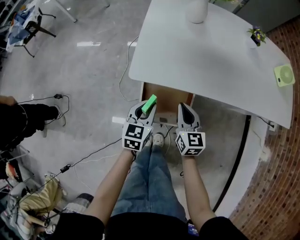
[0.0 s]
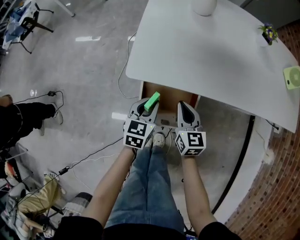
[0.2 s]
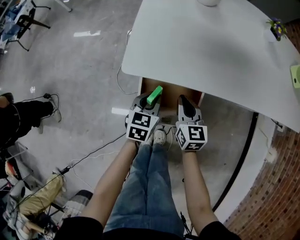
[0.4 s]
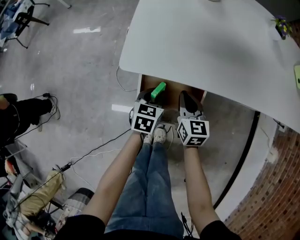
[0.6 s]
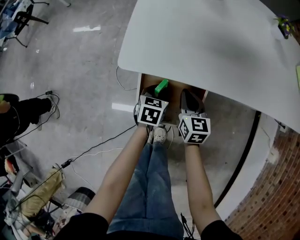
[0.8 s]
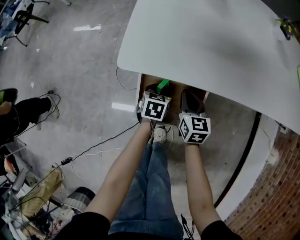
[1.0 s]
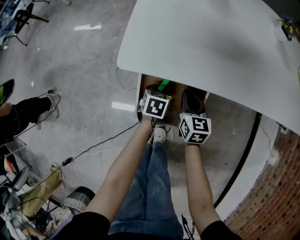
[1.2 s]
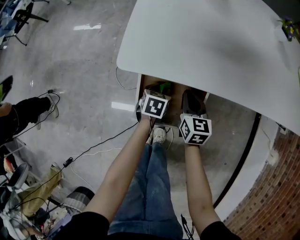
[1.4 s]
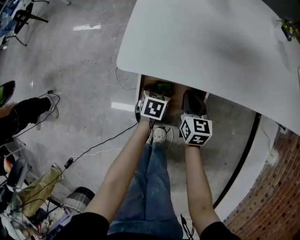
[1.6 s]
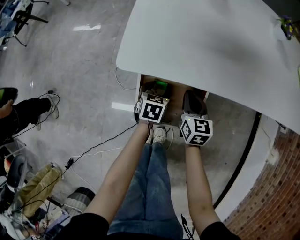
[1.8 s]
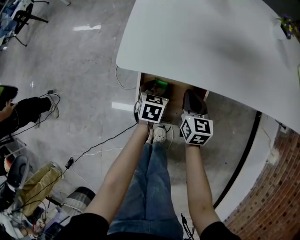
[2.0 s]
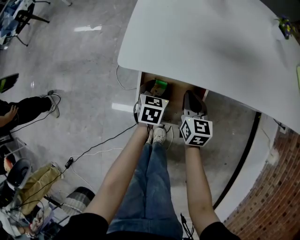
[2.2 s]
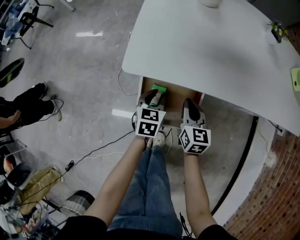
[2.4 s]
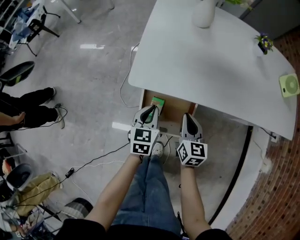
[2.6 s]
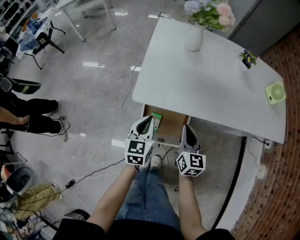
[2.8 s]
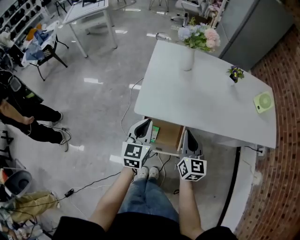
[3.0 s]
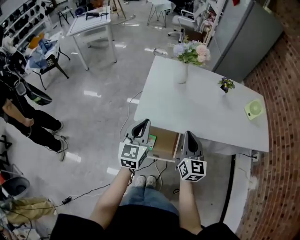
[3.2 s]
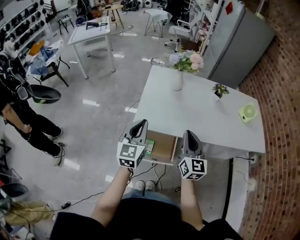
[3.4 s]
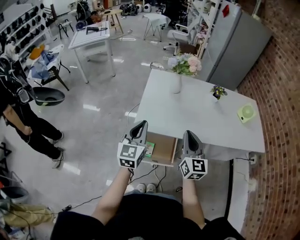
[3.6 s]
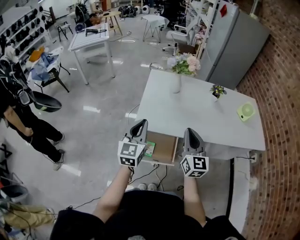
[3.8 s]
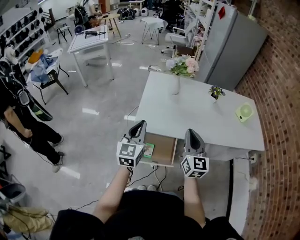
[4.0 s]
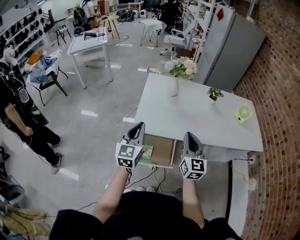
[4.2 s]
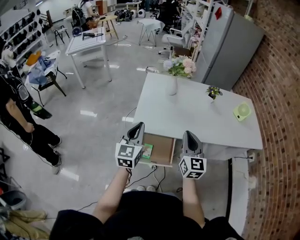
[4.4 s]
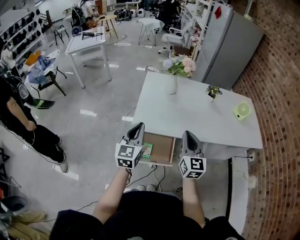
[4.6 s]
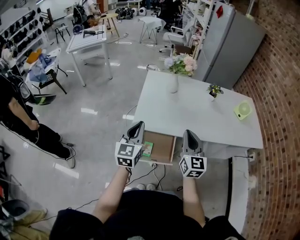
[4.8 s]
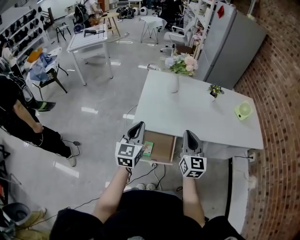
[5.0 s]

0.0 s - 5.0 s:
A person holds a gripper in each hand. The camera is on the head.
0.0 s - 1.6 s: The two grippers go about 20 cm downward. The left gripper rotates roughly 30 degrees, and opens its fingers.
1.6 s - 3.4 s: Both grippers travel together upward, about 50 cm. The left gripper angles its fingers upward, by about 50 degrees, and closes up, while the right gripper points its fingers roughly 30 degrees further upward.
3.4 s - 5.0 s: The grippers move only a little.

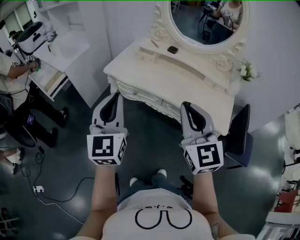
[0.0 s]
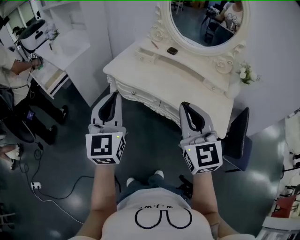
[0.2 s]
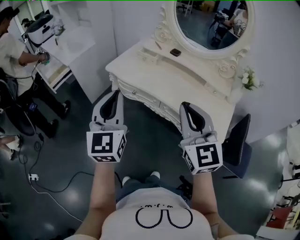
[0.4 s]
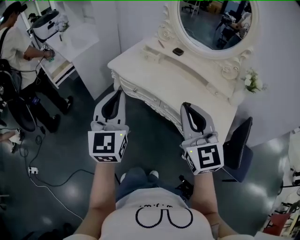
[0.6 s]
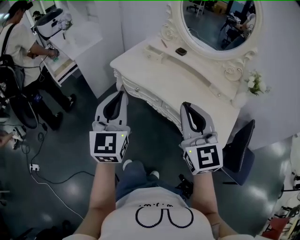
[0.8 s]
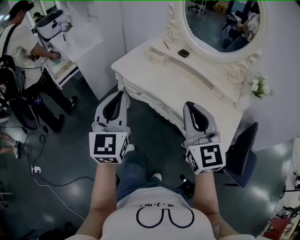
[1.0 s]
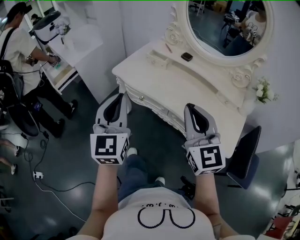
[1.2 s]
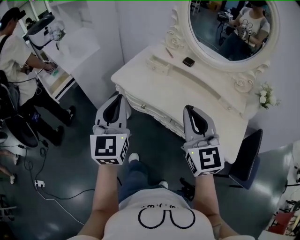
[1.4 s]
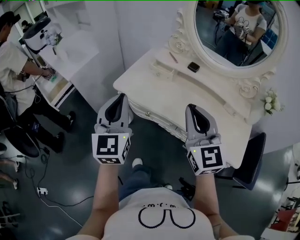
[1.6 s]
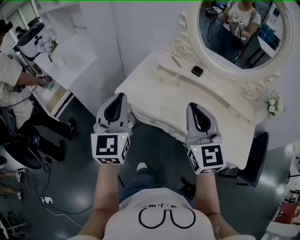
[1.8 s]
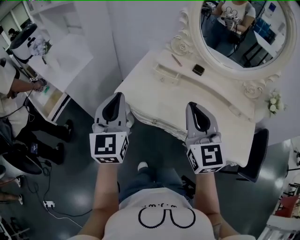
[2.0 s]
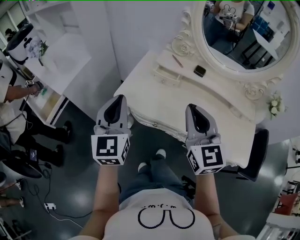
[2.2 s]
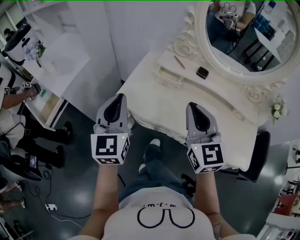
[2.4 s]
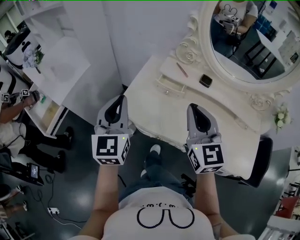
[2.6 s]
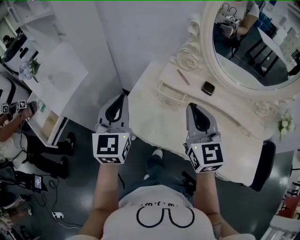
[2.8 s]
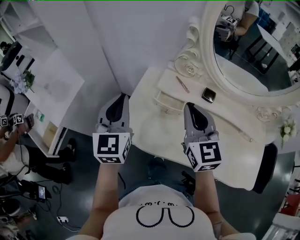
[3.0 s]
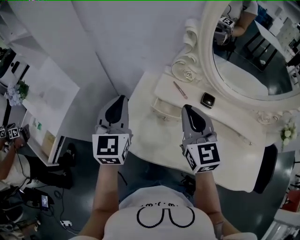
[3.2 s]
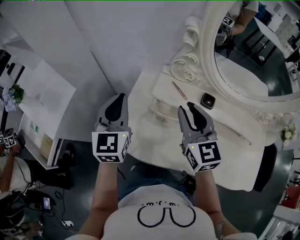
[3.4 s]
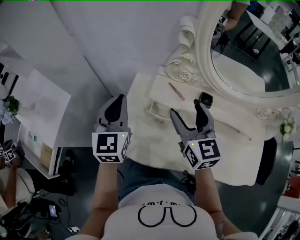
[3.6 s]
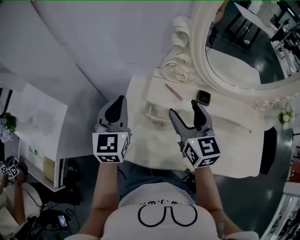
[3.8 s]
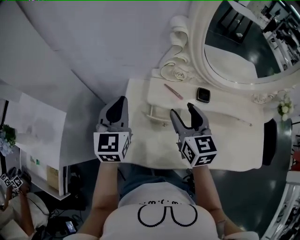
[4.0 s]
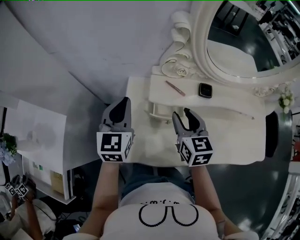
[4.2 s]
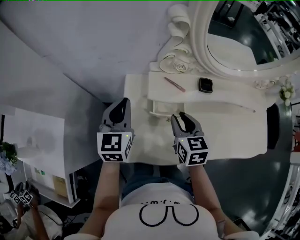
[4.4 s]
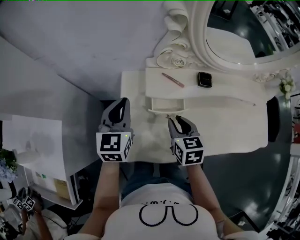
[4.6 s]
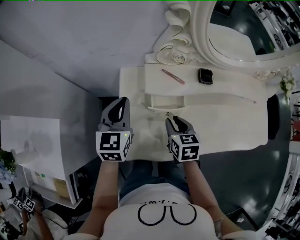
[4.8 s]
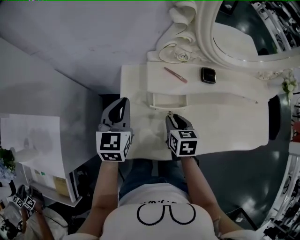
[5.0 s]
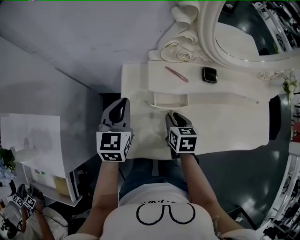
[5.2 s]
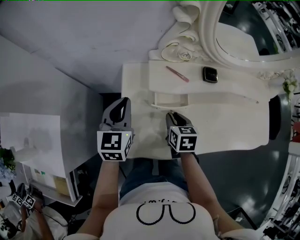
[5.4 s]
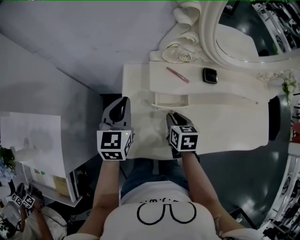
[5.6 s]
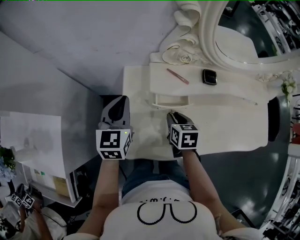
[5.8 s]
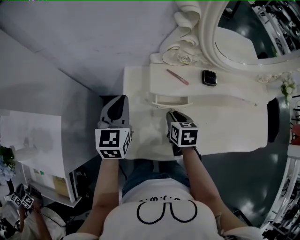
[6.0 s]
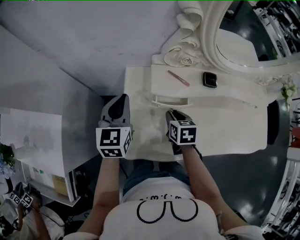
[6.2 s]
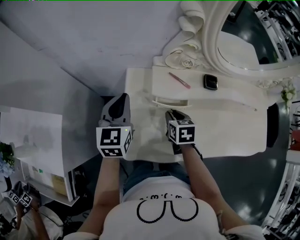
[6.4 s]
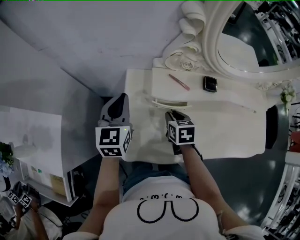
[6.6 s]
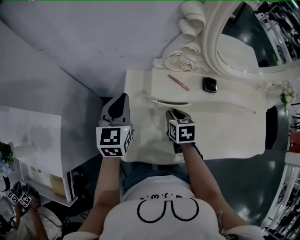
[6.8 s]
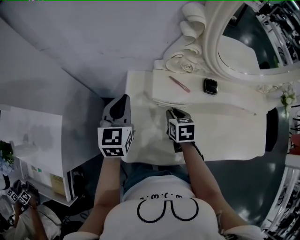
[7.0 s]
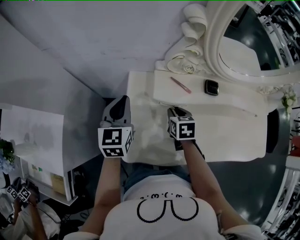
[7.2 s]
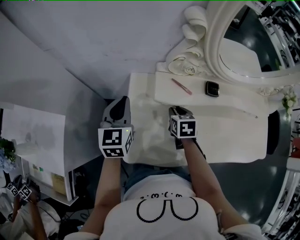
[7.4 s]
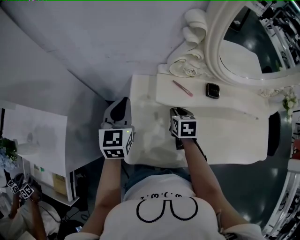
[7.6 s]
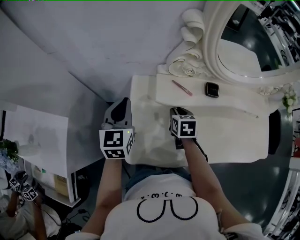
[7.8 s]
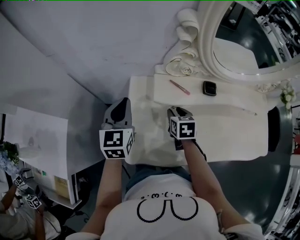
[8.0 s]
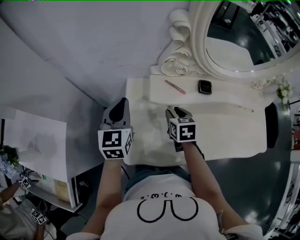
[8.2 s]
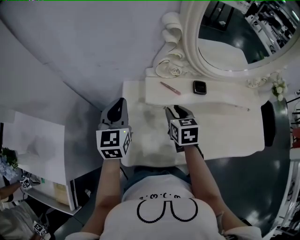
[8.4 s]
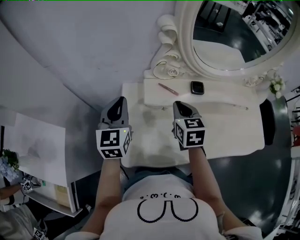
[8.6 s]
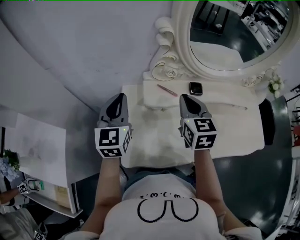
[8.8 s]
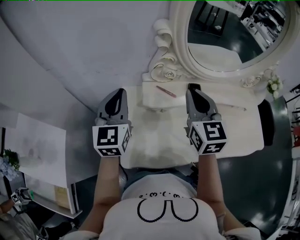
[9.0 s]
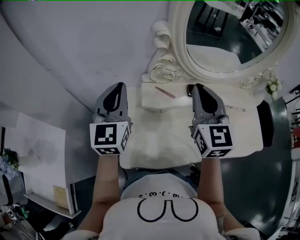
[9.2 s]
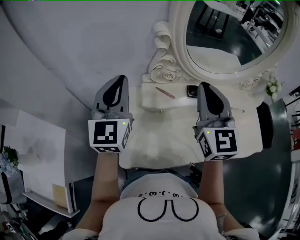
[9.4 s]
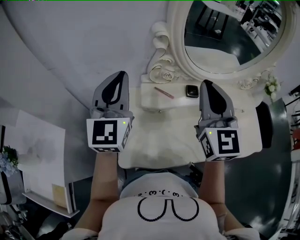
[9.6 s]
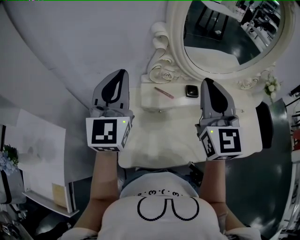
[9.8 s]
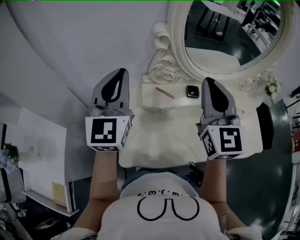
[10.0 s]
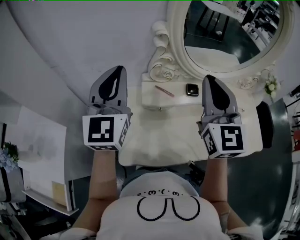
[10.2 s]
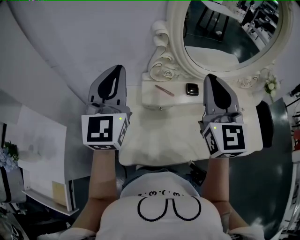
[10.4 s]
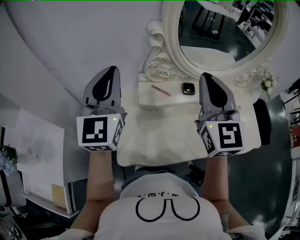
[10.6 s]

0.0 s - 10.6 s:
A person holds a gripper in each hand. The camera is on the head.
0.0 s - 1.6 s: The two grippers go roughly 20 cm forward.
1.6 s - 3.0 s: The grippers both shift forward by about 35 cm.
3.0 s - 4.6 s: The left gripper travels forward and downward by about 20 cm, and changes its angle by approximately 30 degrees, while the right gripper shifts approximately 20 cm downward, points its fingers about 30 degrees further downward, and opens and closes again.
4.6 s - 6.0 s: The right gripper is displaced downward by some 5 cm.
6.0 s - 7.6 s: The right gripper is displaced forward by approximately 5 cm.
7.6 s - 9.0 s: The right gripper travels upward by roughly 30 cm, and angles its fingers upward, by roughly 40 degrees. Meanwhile the left gripper heads upward, covering approximately 10 cm.
9.0 s - 10.6 s: Both grippers travel together upward, some 10 cm.

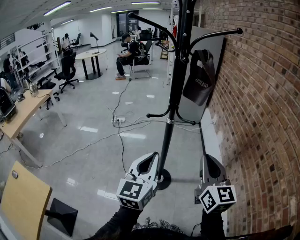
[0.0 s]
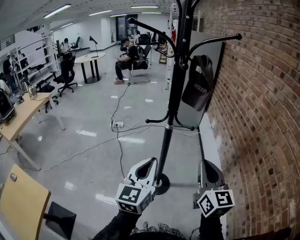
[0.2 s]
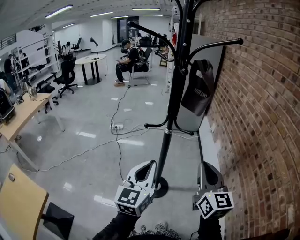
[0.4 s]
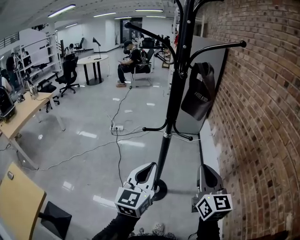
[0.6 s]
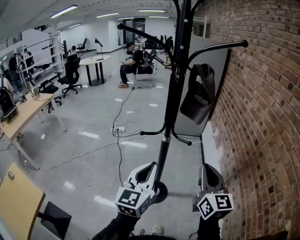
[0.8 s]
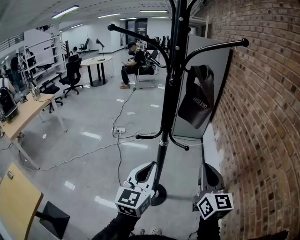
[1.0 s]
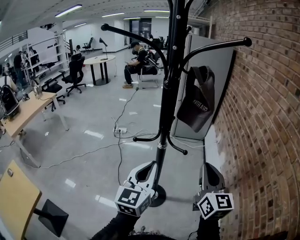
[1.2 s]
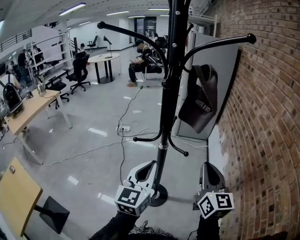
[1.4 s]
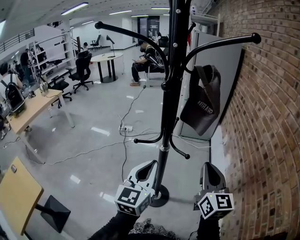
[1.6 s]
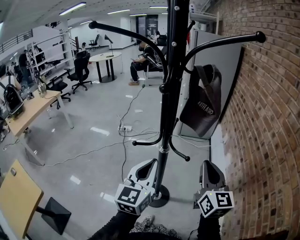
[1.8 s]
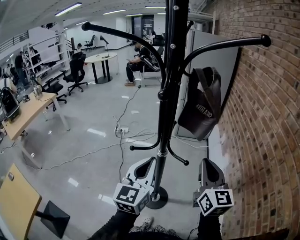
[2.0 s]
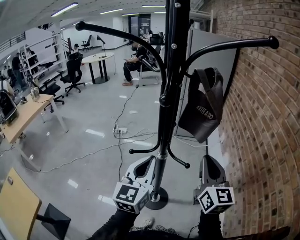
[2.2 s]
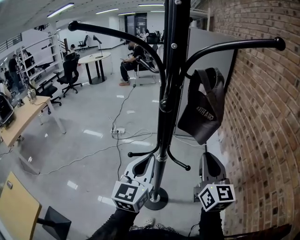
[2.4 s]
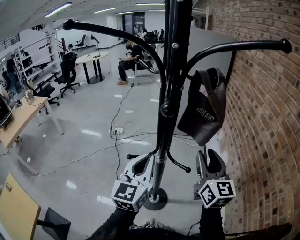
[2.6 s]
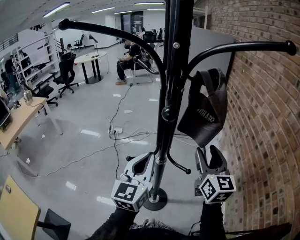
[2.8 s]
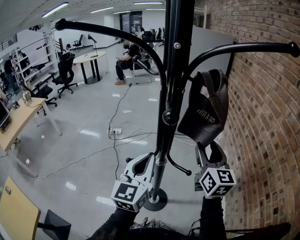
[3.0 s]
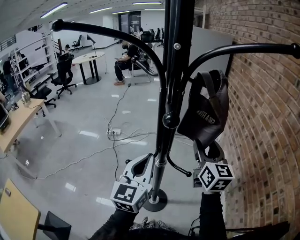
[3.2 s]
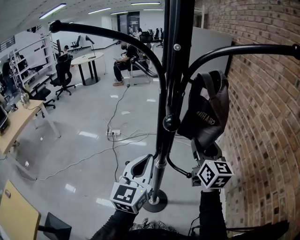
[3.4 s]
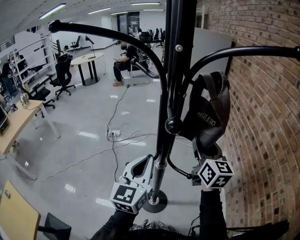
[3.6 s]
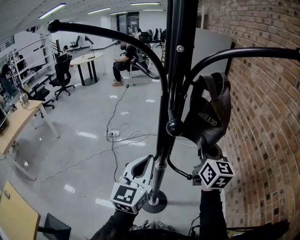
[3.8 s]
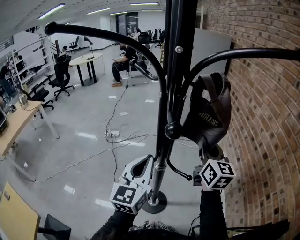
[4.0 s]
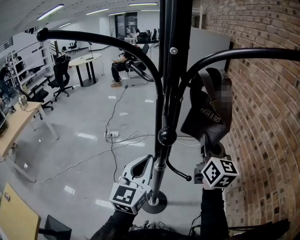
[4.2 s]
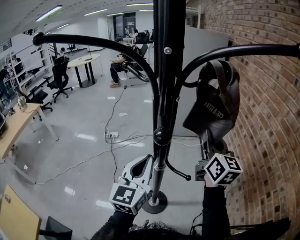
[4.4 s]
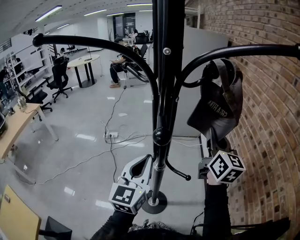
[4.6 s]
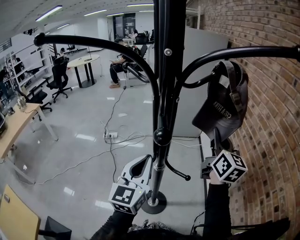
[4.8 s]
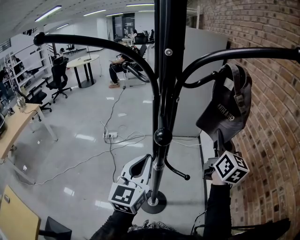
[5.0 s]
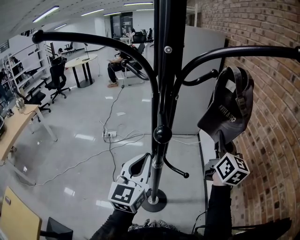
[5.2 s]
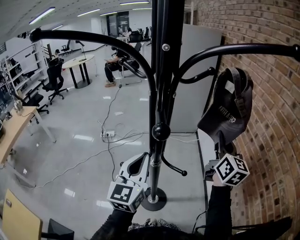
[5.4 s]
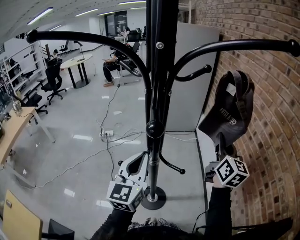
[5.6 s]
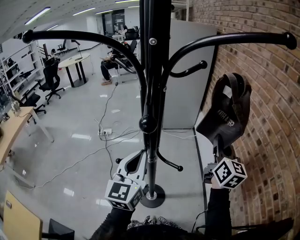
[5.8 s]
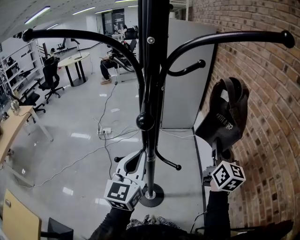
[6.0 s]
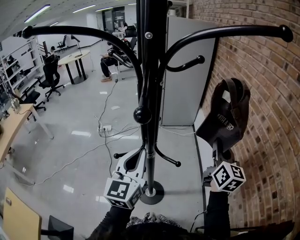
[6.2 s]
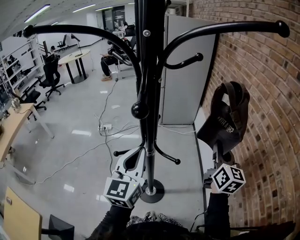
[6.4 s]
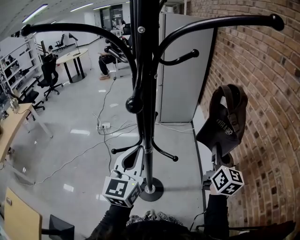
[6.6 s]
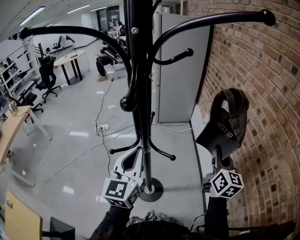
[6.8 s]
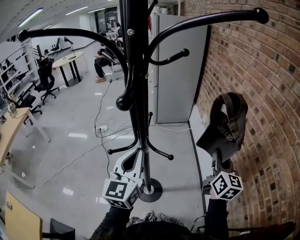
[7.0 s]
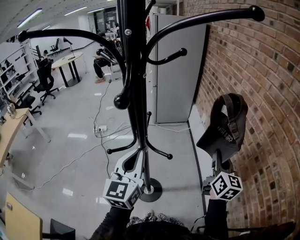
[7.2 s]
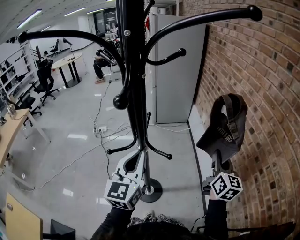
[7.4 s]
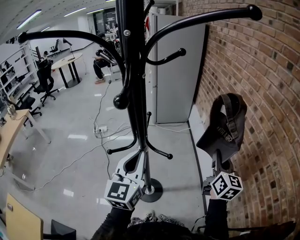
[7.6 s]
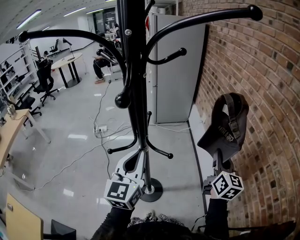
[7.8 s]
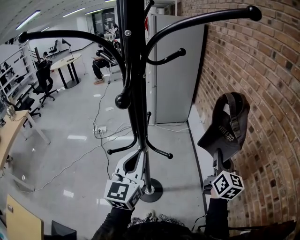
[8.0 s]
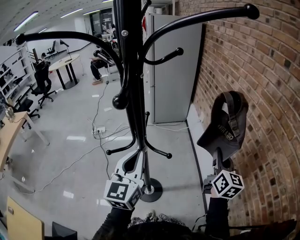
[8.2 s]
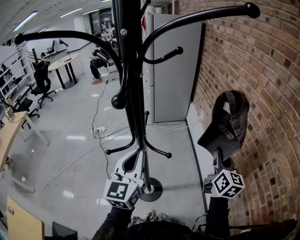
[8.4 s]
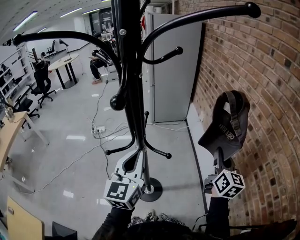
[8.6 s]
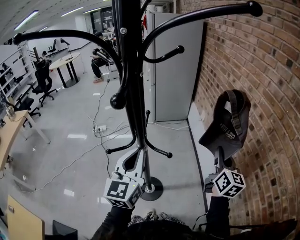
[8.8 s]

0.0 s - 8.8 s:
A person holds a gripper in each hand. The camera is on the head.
0.0 s - 1.4 s: The grippers both shift forward and to the right by some 15 cm.
1.4 s - 3.0 s: The two grippers go approximately 15 cm forward. The right gripper opens up.
3.0 s - 4.4 s: The right gripper shifts by approximately 5 cm, and closes up.
4.4 s - 5.8 s: The right gripper is displaced to the right by some 10 cm.
5.8 s - 7.4 s: The right gripper travels backward, downward and to the right by roughly 15 cm. Meanwhile the left gripper changes place by roughly 5 cm.
7.4 s - 8.8 s: Both grippers stay put.
